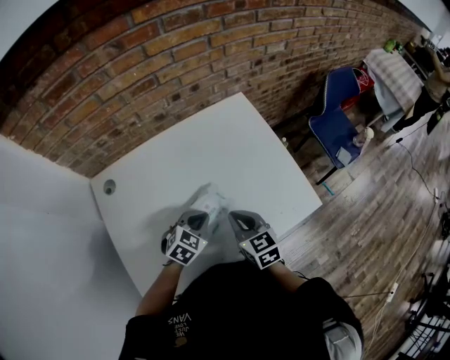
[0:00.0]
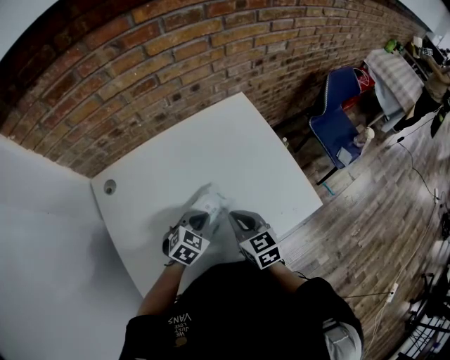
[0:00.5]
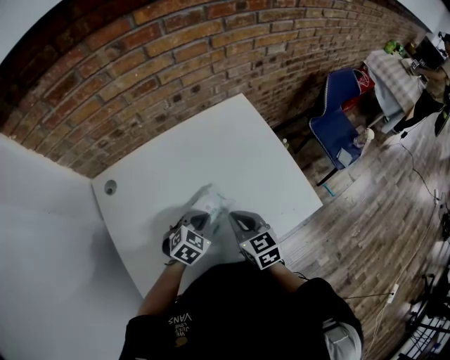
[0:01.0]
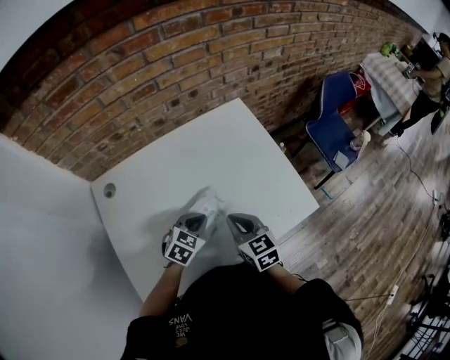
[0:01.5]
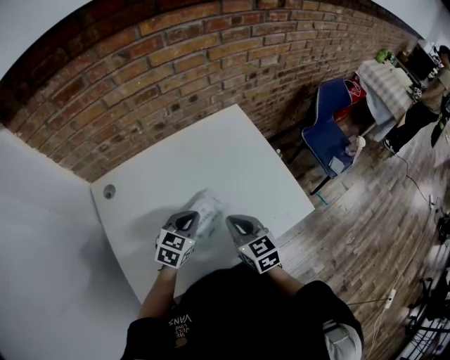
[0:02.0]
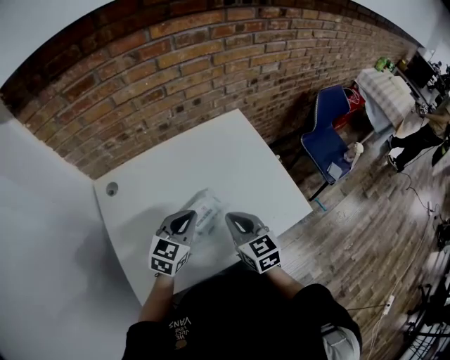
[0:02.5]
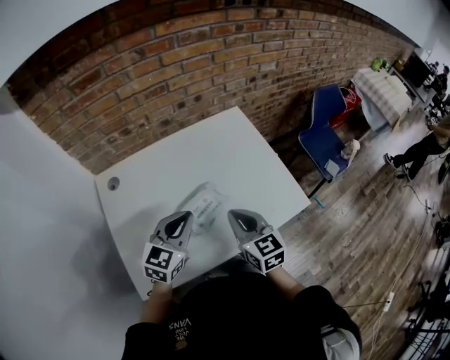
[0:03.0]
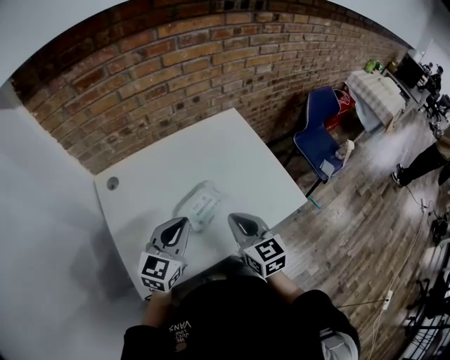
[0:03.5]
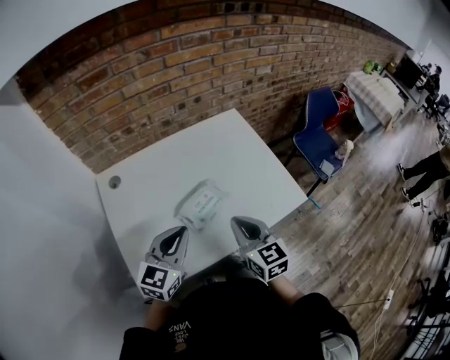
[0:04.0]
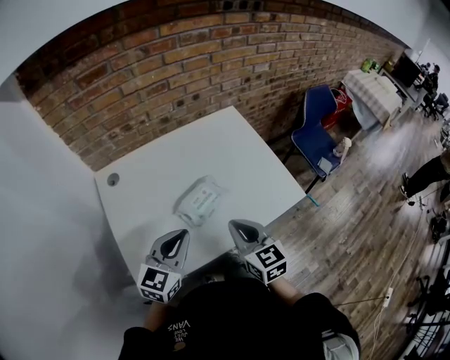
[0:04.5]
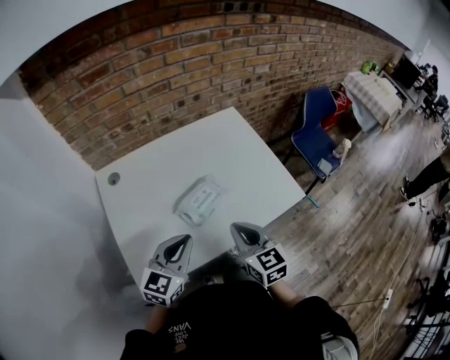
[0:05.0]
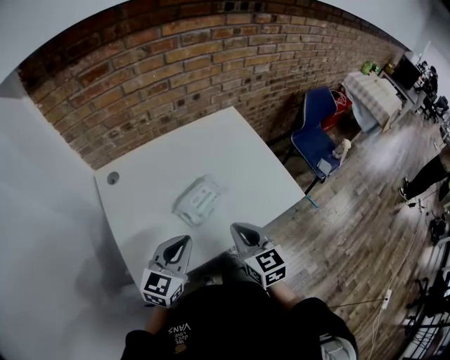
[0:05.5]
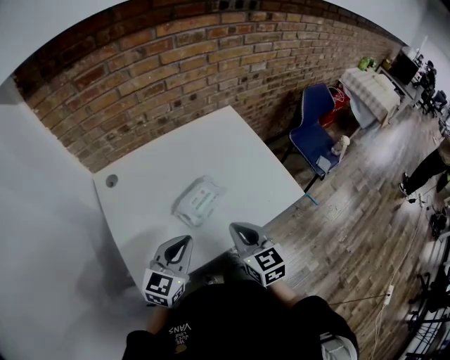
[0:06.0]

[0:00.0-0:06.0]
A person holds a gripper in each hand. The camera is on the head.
0:00.0 to 0:02.0: The left gripper moves upward, roughly 5 cm.
0:02.0 to 0:04.0: The left gripper is displaced backward and upward by approximately 20 cm, and changes its angle by some 20 degrees. Meanwhile the right gripper travels backward and upward by roughly 10 cm.
0:04.0 to 0:06.0: There are only small adjustments of the grippers.

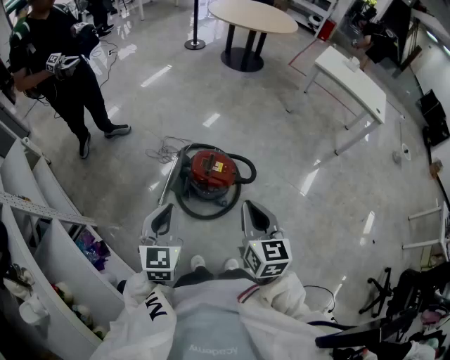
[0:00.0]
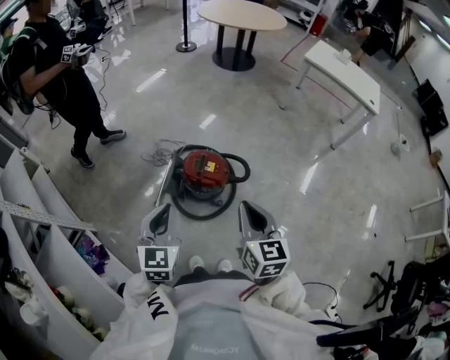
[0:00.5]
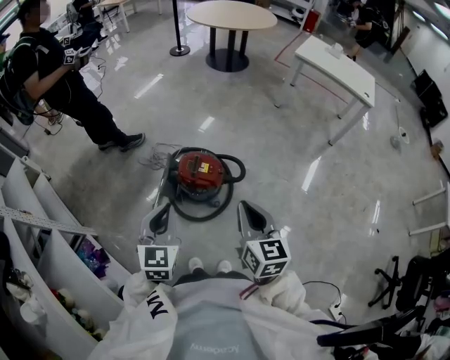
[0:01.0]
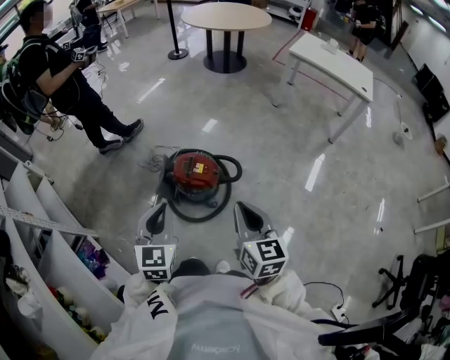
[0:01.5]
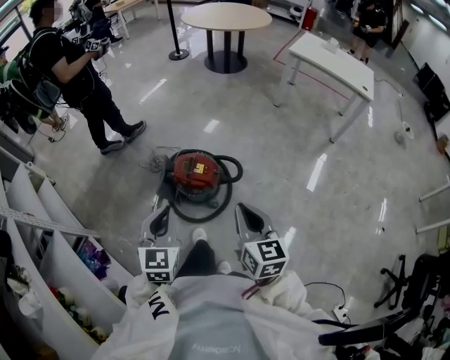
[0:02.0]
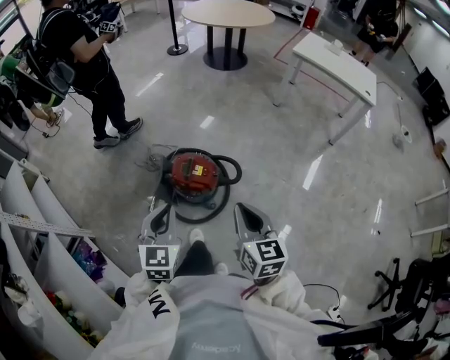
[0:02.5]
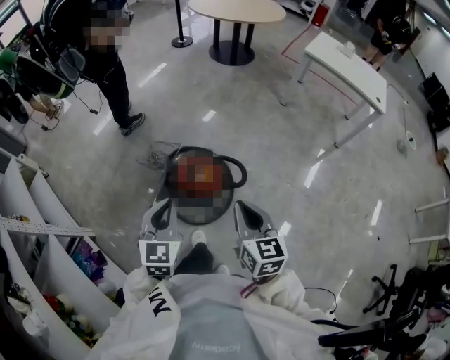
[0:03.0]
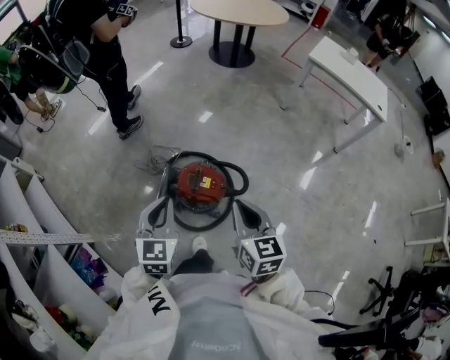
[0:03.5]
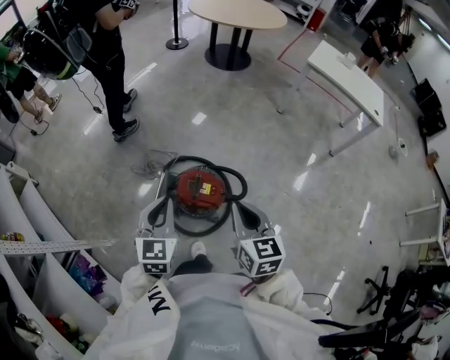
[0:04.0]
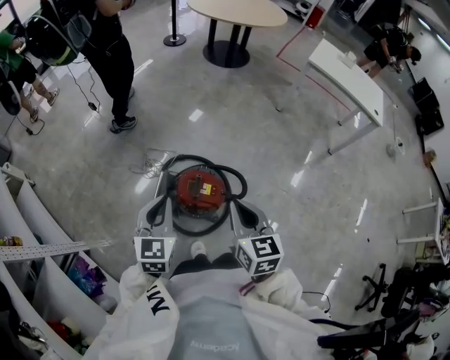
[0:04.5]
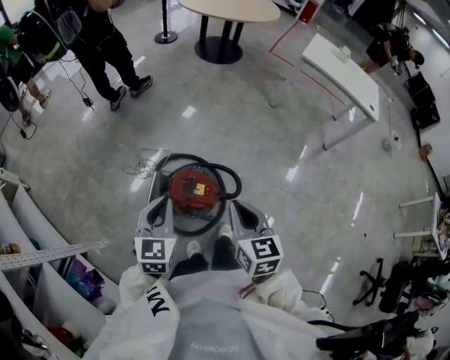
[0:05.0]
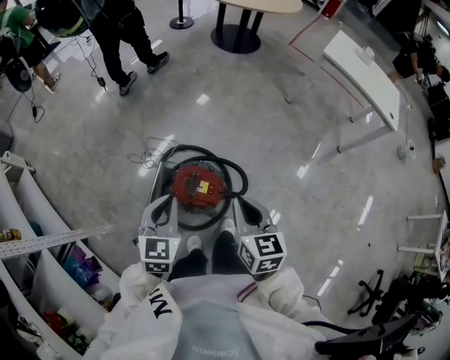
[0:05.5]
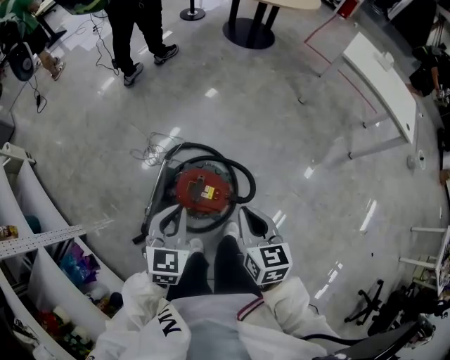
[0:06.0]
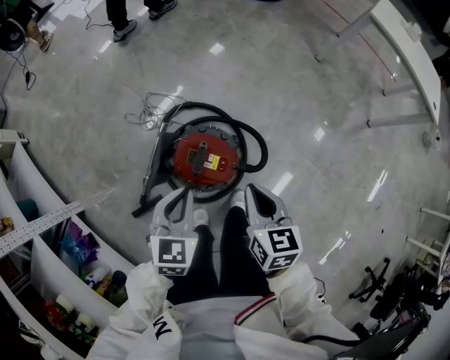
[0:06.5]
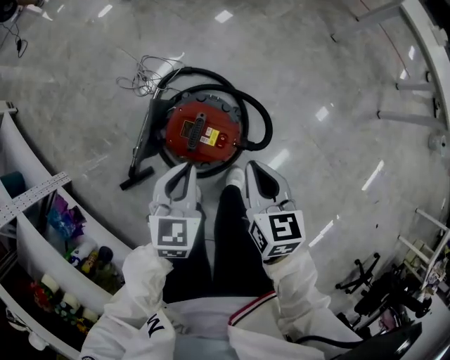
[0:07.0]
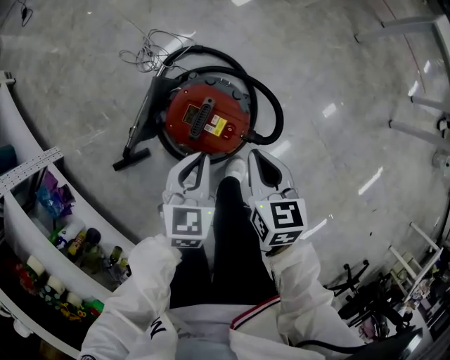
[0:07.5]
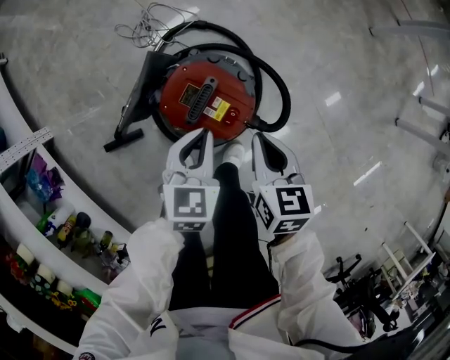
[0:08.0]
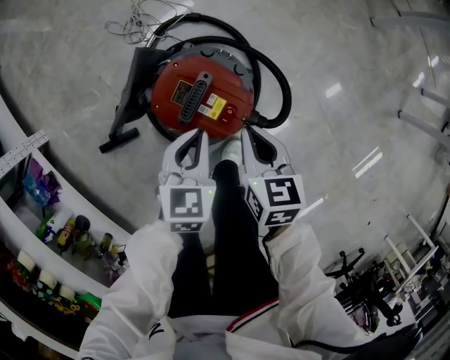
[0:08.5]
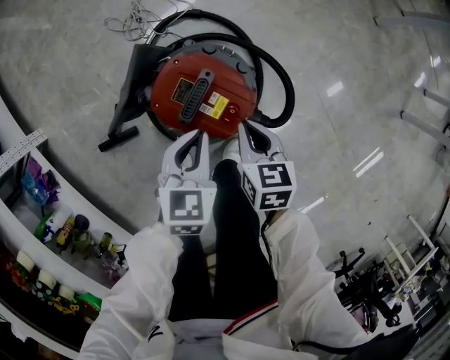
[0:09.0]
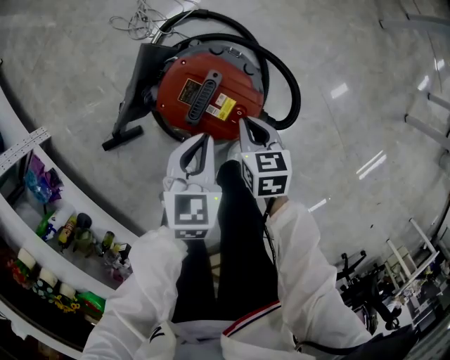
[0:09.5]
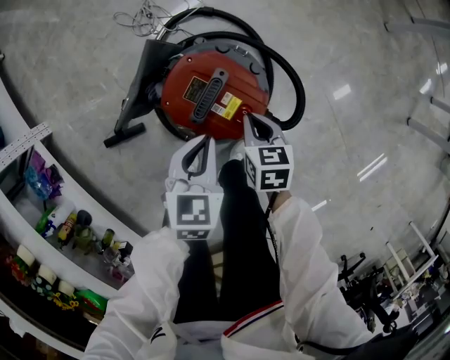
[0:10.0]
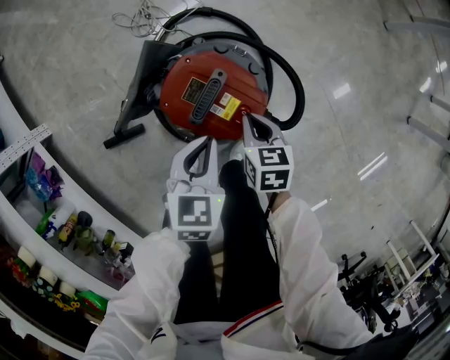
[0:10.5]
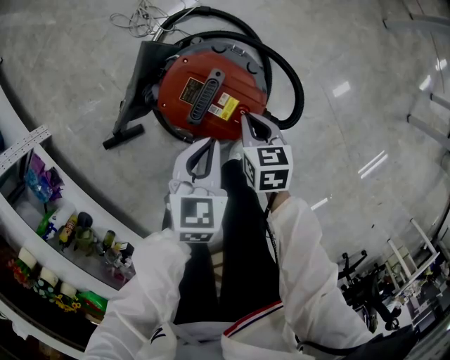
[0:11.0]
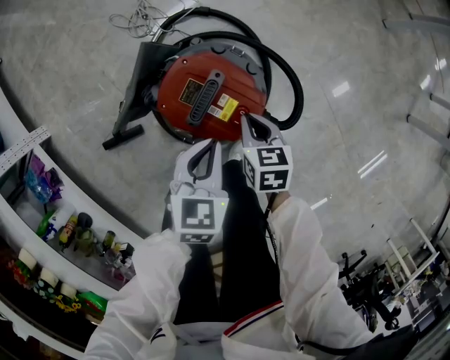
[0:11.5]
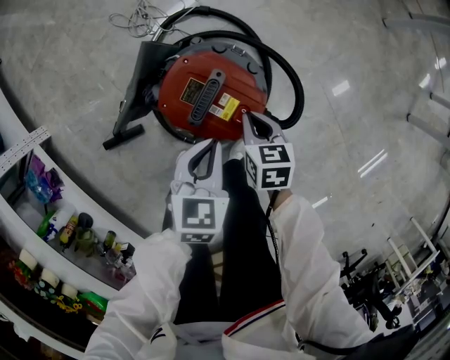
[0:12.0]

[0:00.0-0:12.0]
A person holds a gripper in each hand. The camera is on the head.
0:00.0 to 0:02.0: The grippers both shift to the right by about 10 cm.
0:02.0 to 0:04.0: The right gripper travels forward and to the left by about 20 cm. Meanwhile the left gripper shifts approximately 20 cm forward.
0:04.0 to 0:06.0: The left gripper travels downward, forward and to the right by some 10 cm; the right gripper is displaced downward and forward by roughly 10 cm.
0:06.0 to 0:08.0: The grippers both shift downward by roughly 25 cm. The left gripper swivels about 20 degrees.
0:08.0 to 0:10.0: The left gripper shifts by roughly 5 cm. The right gripper moves downward, roughly 15 cm.
0:10.0 to 0:12.0: There are only small adjustments of the grippers.

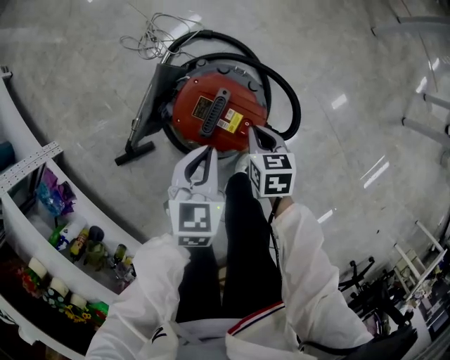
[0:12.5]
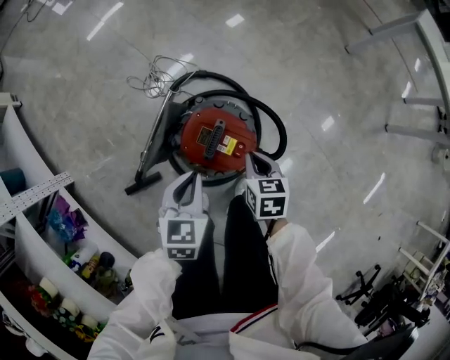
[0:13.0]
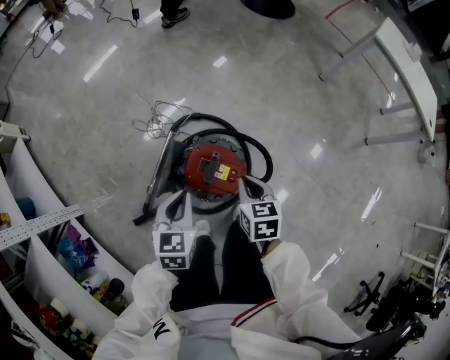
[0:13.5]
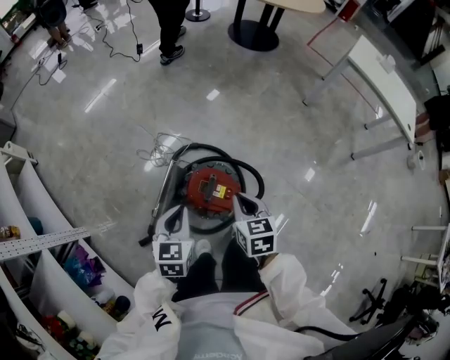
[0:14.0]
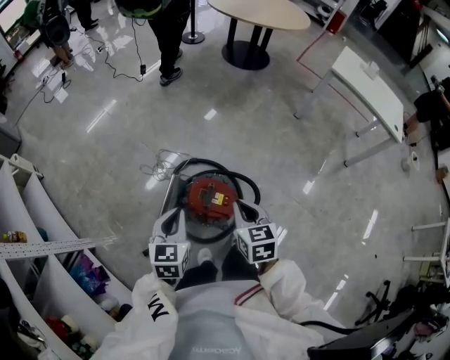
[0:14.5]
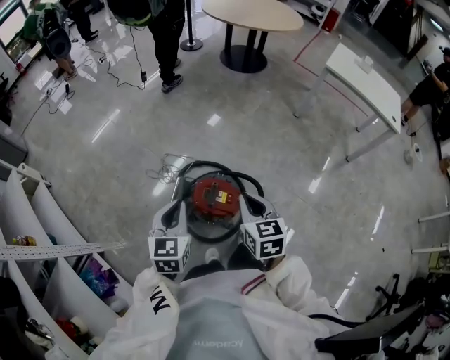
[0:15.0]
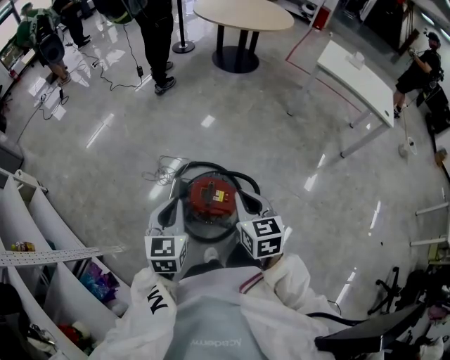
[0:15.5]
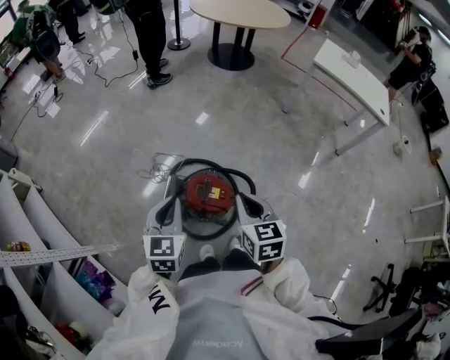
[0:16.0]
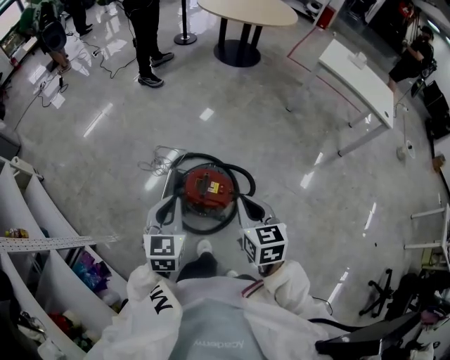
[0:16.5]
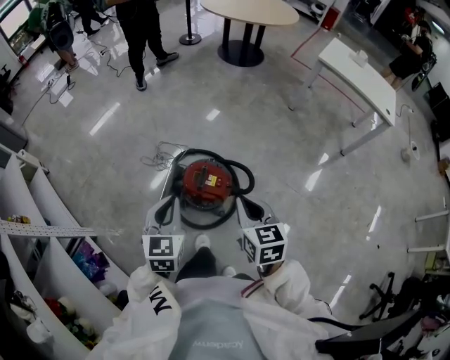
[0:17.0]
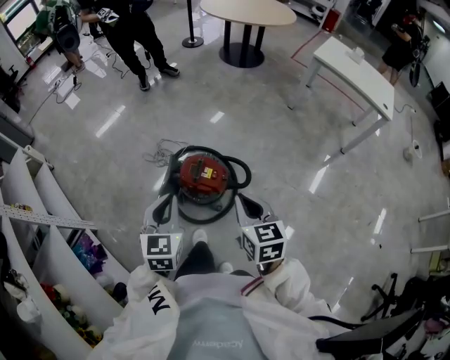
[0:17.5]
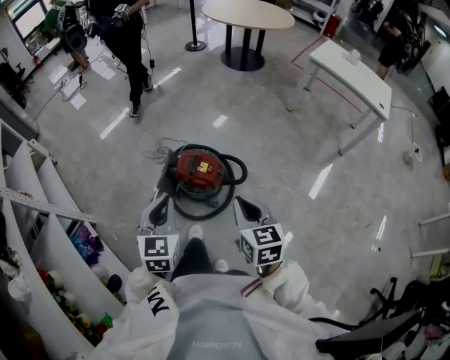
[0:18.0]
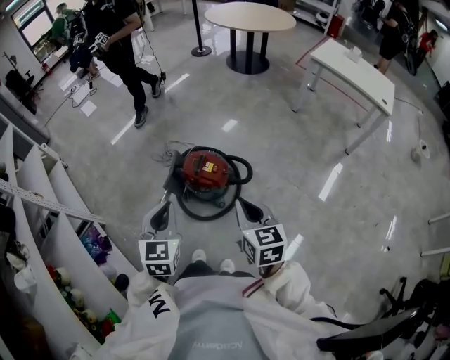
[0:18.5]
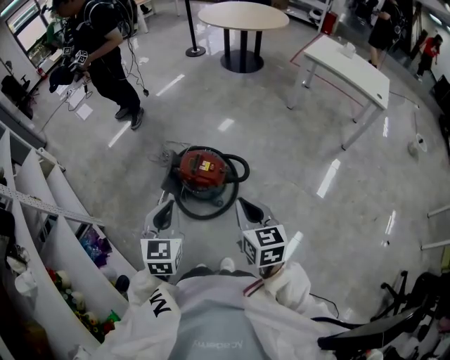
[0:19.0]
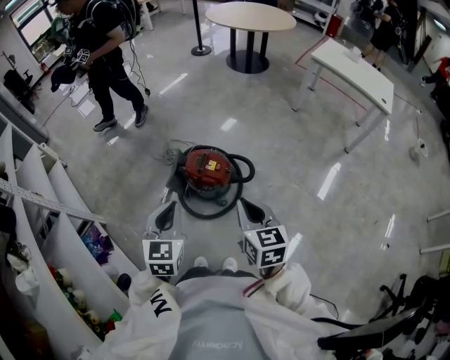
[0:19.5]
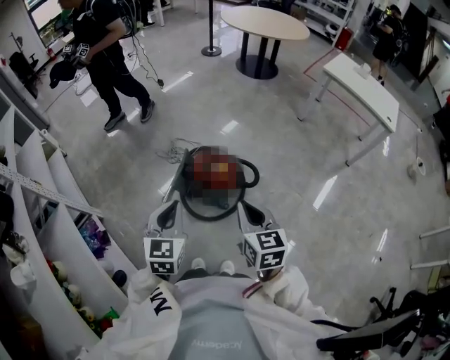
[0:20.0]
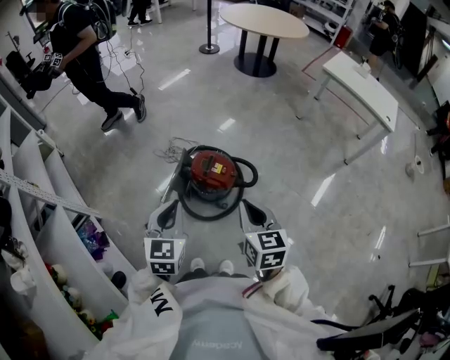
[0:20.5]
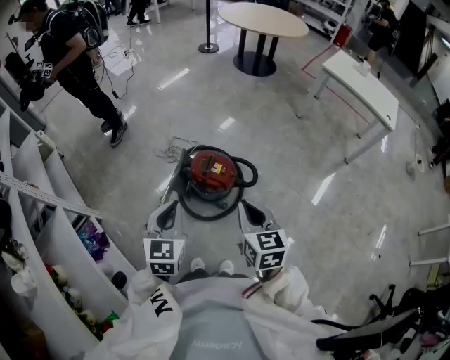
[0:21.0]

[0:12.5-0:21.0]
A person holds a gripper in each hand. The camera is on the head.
0:12.5 to 0:14.5: Both grippers travel together upward, about 30 cm. The right gripper changes its angle by some 20 degrees.
0:14.5 to 0:16.5: The left gripper heads upward, covering about 5 cm, while the right gripper goes approximately 10 cm upward and backward.
0:16.5 to 0:19.0: The two grippers go about 20 cm backward.
0:19.0 to 0:21.0: The two grippers go roughly 5 cm to the left.
